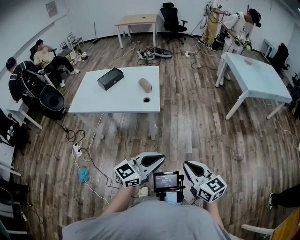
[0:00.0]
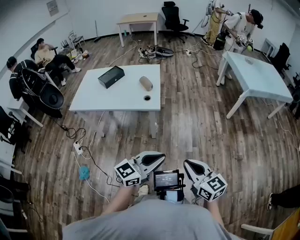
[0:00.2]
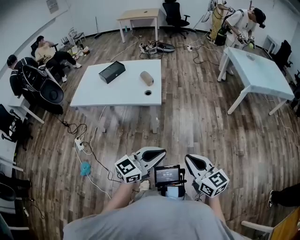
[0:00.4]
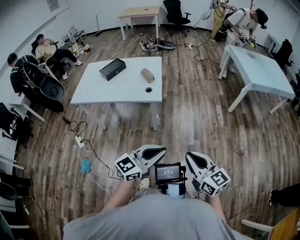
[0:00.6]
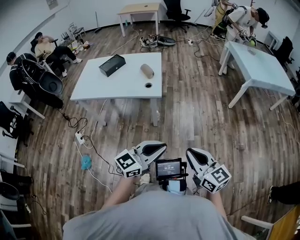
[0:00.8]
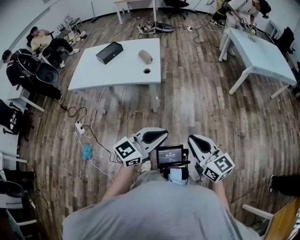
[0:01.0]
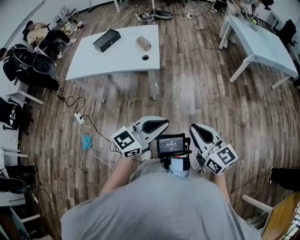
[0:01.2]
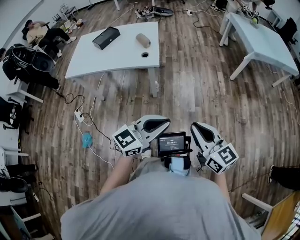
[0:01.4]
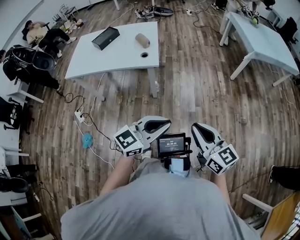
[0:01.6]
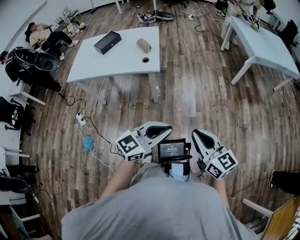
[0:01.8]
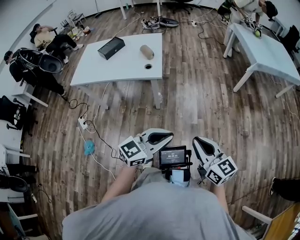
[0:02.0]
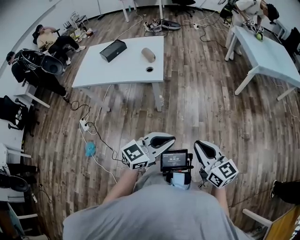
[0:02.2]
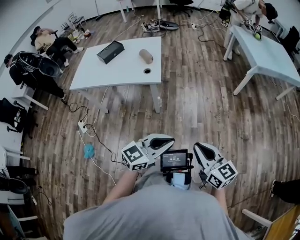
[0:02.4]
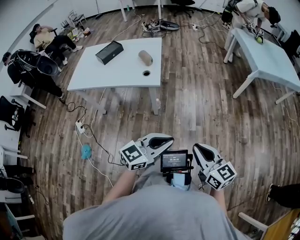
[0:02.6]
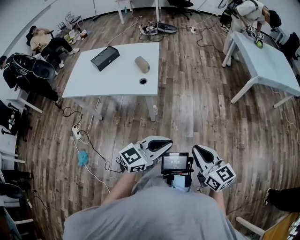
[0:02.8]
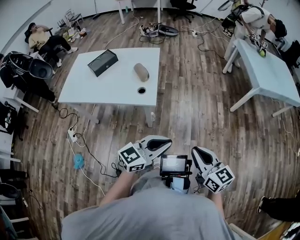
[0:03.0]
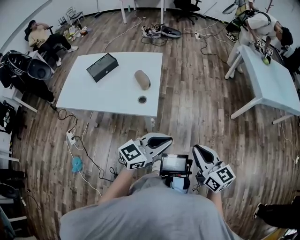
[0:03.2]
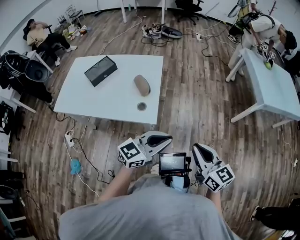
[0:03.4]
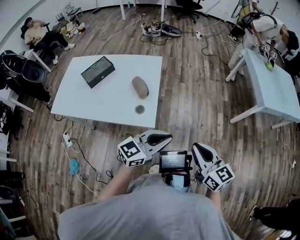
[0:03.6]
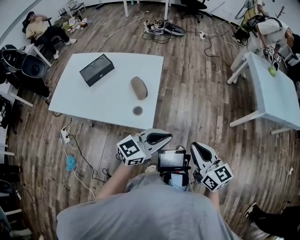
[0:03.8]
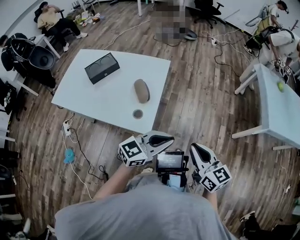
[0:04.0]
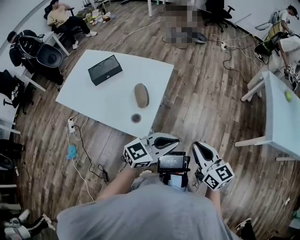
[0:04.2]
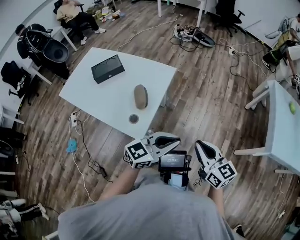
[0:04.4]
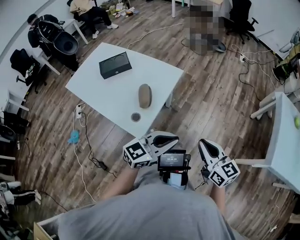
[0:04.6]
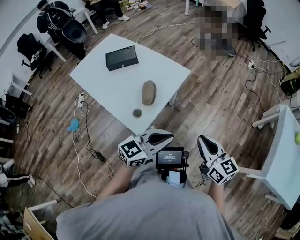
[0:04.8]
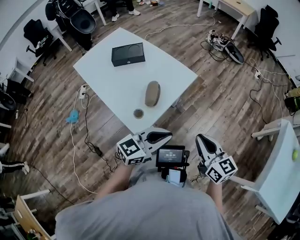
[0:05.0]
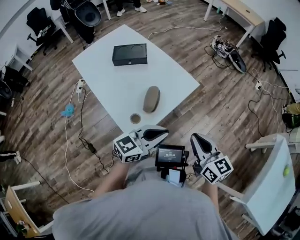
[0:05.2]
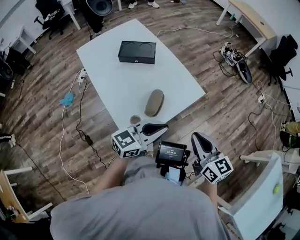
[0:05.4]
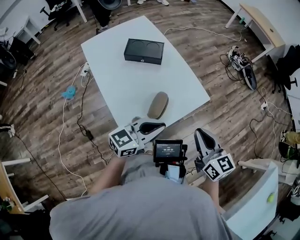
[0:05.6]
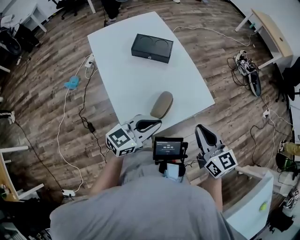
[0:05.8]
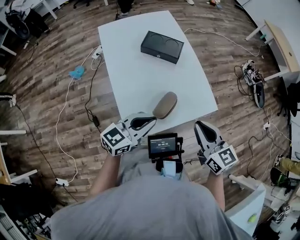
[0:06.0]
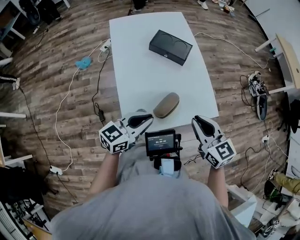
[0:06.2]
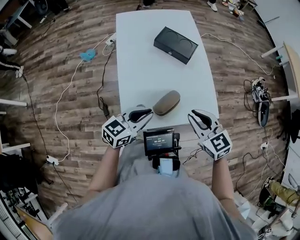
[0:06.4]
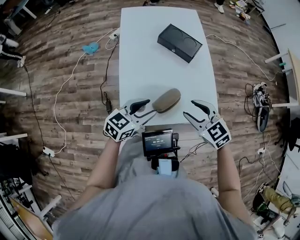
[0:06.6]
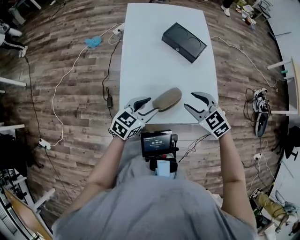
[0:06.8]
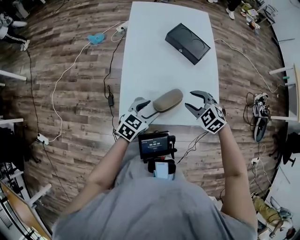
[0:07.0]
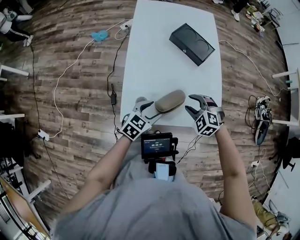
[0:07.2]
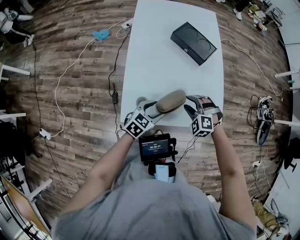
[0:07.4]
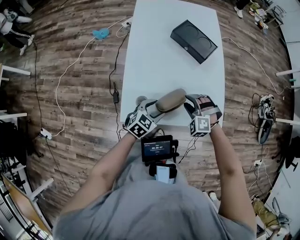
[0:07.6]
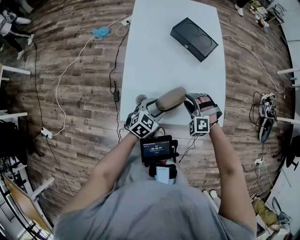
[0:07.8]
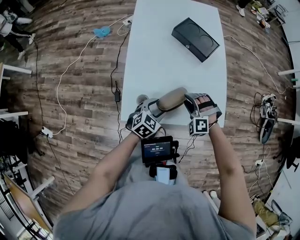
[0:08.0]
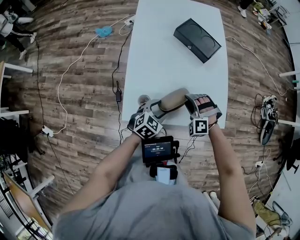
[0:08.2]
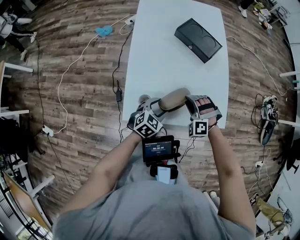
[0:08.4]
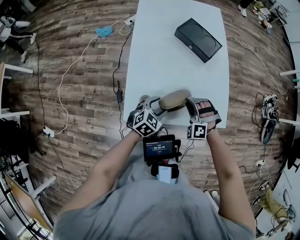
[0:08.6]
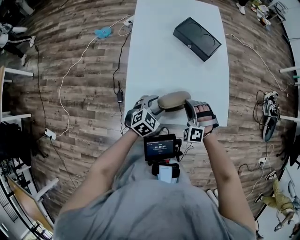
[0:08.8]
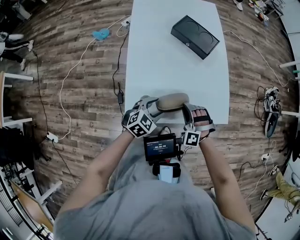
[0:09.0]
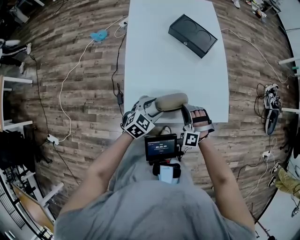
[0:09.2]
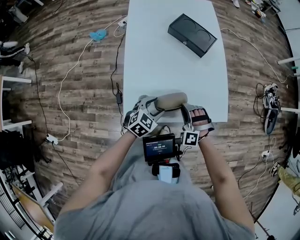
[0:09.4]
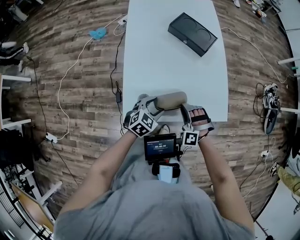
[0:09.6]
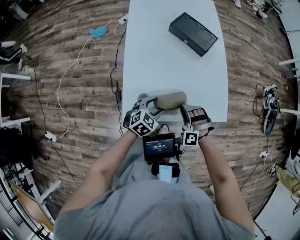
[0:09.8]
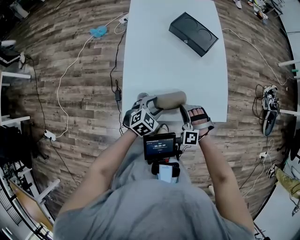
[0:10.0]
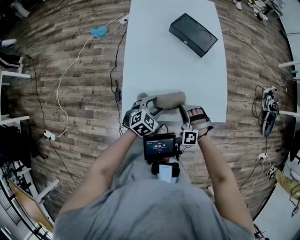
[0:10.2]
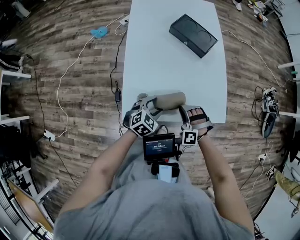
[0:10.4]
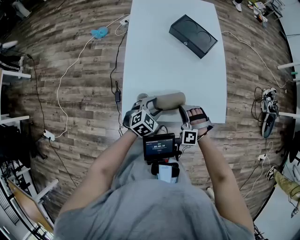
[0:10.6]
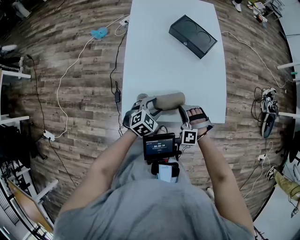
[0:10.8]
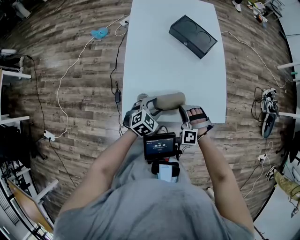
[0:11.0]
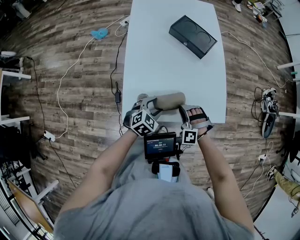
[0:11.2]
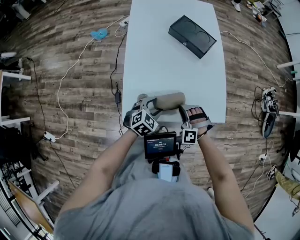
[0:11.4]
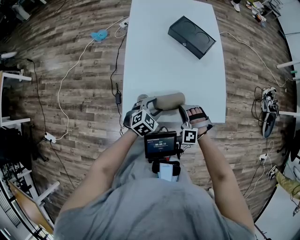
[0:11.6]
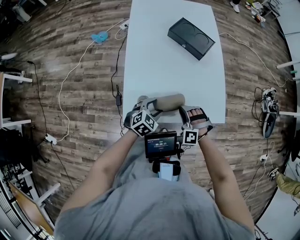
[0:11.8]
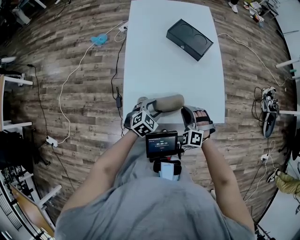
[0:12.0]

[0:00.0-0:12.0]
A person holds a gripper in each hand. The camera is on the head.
0:00.0 to 0:01.6: The left gripper moves roughly 5 cm.
0:01.6 to 0:03.0: Both grippers move forward, some 20 cm.
0:03.0 to 0:04.4: Both grippers move forward, some 40 cm.
0:04.4 to 0:06.0: The left gripper changes place by approximately 30 cm, and swivels about 60 degrees. The right gripper changes place by some 35 cm, and swivels about 50 degrees.
0:06.0 to 0:07.6: The grippers both shift downward by some 25 cm. The right gripper twists approximately 90 degrees counterclockwise, seen from behind, and opens; the left gripper tips its fingers downward by roughly 30 degrees, and opens up.
0:07.6 to 0:09.0: The right gripper moves about 5 cm, and closes up.
0:09.0 to 0:12.0: The grippers stay close to where they were, moving slightly.

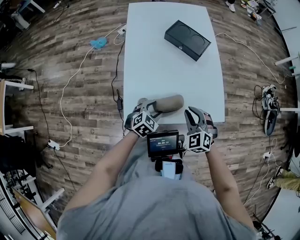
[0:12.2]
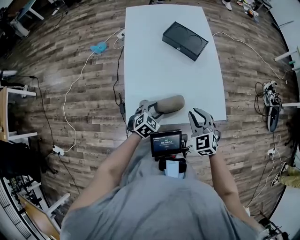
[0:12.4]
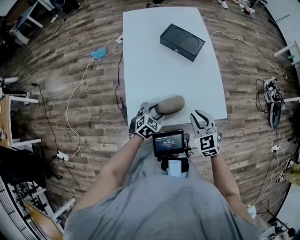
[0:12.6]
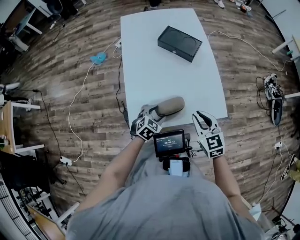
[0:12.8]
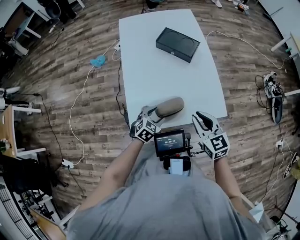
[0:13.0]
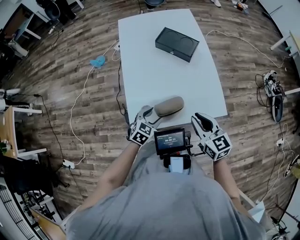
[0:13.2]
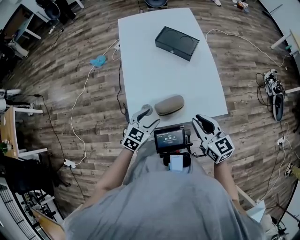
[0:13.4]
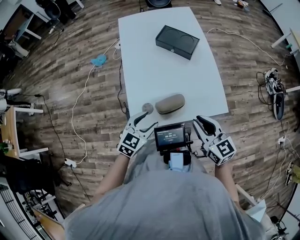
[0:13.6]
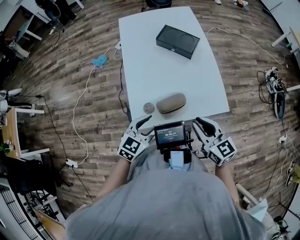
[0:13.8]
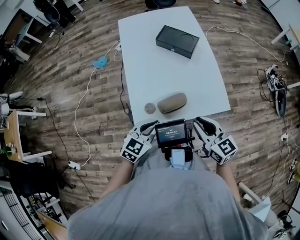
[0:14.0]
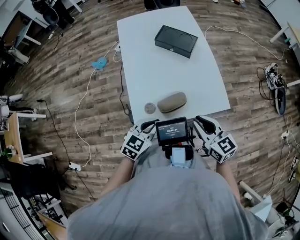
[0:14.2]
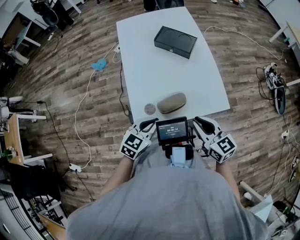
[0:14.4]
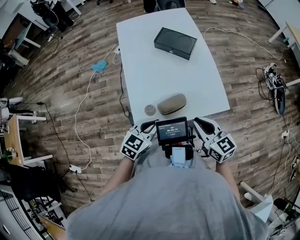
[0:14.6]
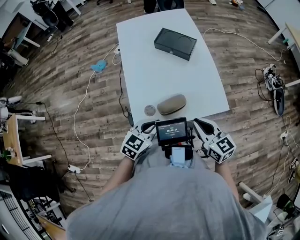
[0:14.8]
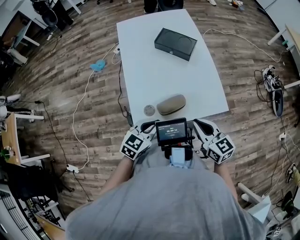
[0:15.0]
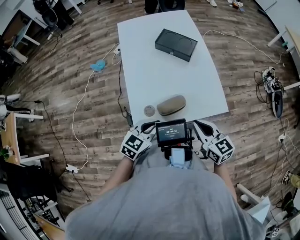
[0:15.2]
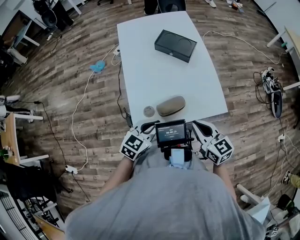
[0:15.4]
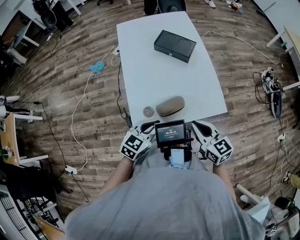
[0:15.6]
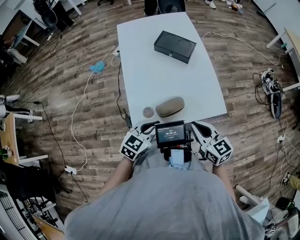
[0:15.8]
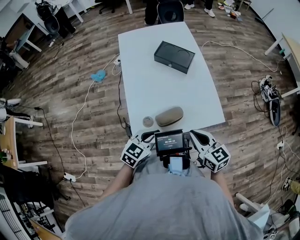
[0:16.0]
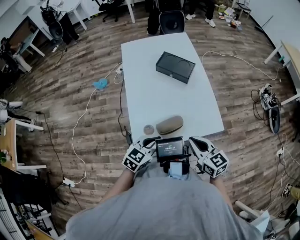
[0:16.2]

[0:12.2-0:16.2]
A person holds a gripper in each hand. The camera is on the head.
0:12.2 to 0:13.6: Both grippers travel together upward and backward, roughly 15 cm. The right gripper rotates around the line of its fingers by roughly 50 degrees, clockwise from behind.
0:13.6 to 0:14.8: The left gripper closes up.
0:14.8 to 0:16.2: There are only small adjustments of the grippers.

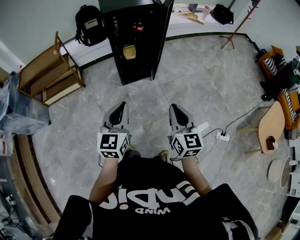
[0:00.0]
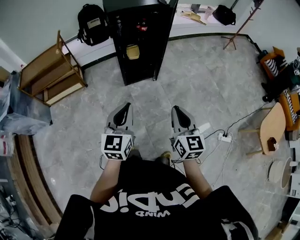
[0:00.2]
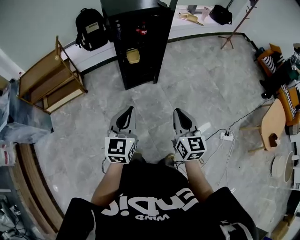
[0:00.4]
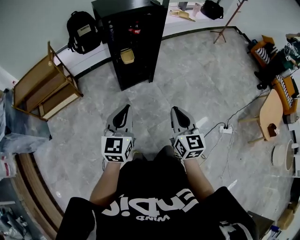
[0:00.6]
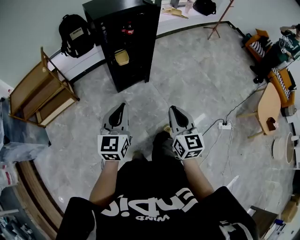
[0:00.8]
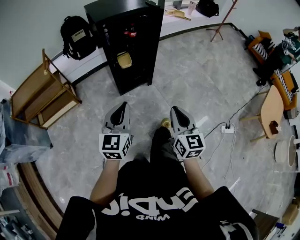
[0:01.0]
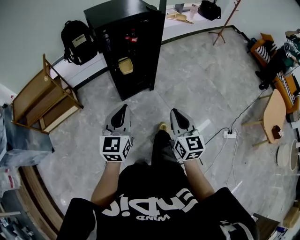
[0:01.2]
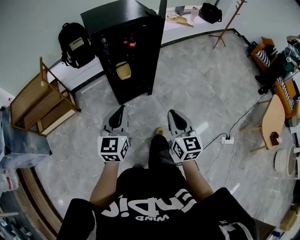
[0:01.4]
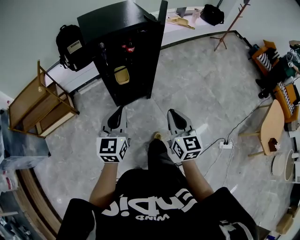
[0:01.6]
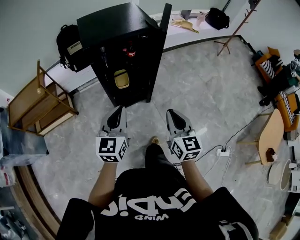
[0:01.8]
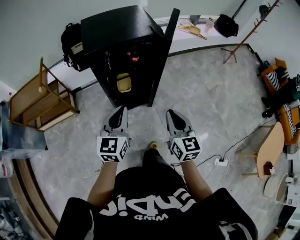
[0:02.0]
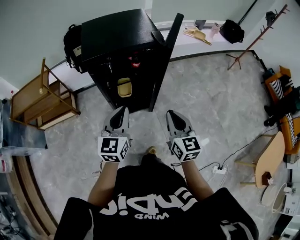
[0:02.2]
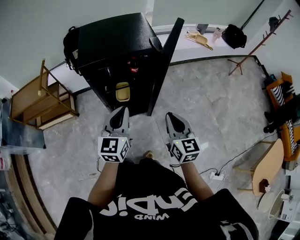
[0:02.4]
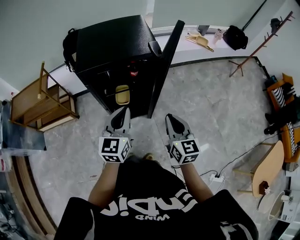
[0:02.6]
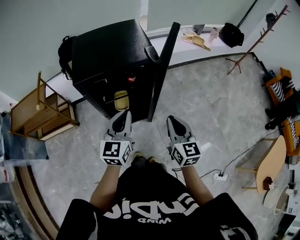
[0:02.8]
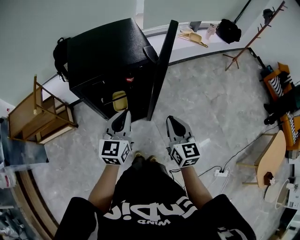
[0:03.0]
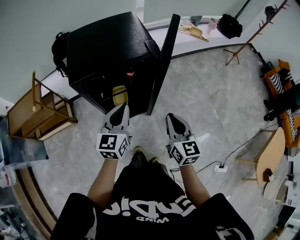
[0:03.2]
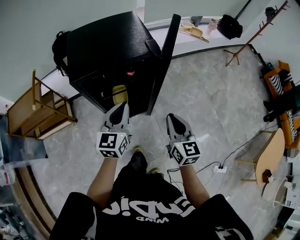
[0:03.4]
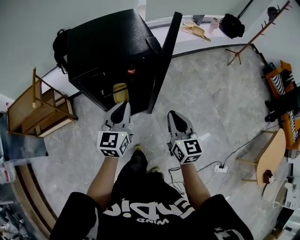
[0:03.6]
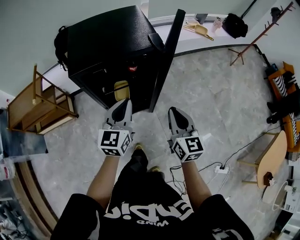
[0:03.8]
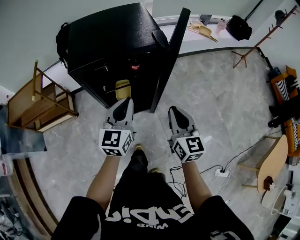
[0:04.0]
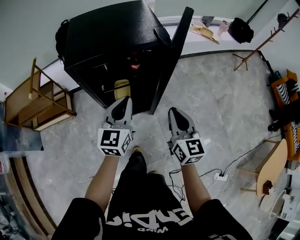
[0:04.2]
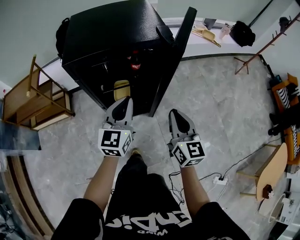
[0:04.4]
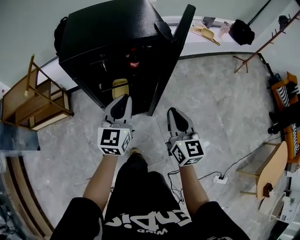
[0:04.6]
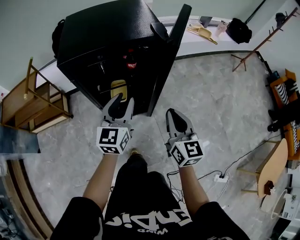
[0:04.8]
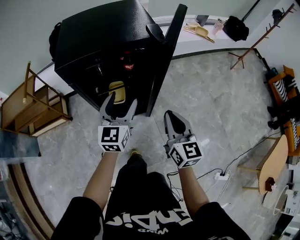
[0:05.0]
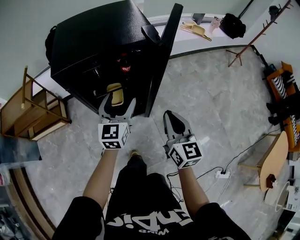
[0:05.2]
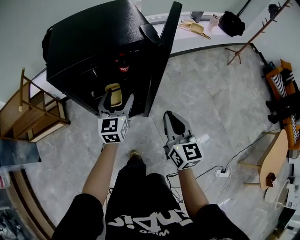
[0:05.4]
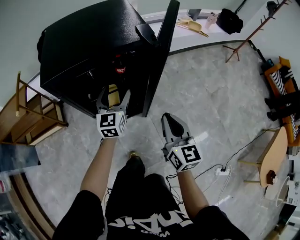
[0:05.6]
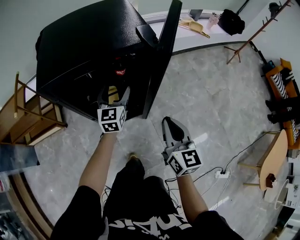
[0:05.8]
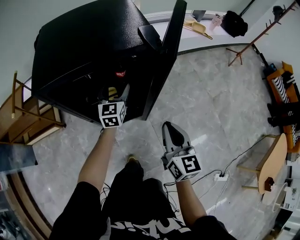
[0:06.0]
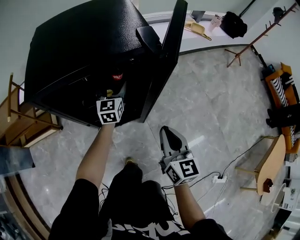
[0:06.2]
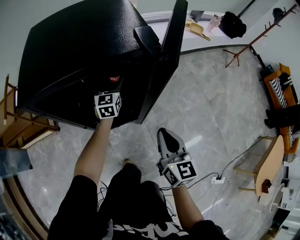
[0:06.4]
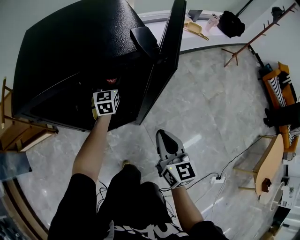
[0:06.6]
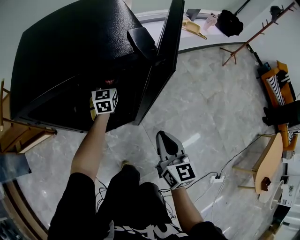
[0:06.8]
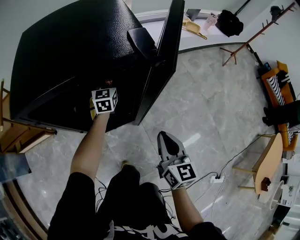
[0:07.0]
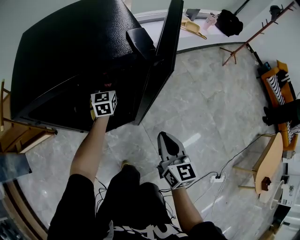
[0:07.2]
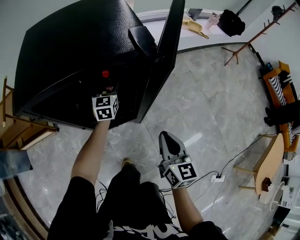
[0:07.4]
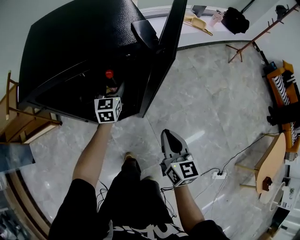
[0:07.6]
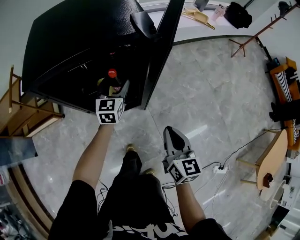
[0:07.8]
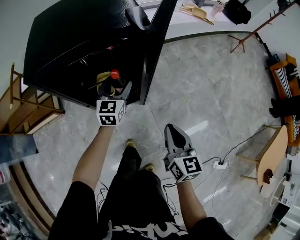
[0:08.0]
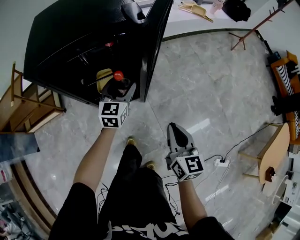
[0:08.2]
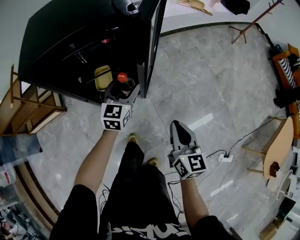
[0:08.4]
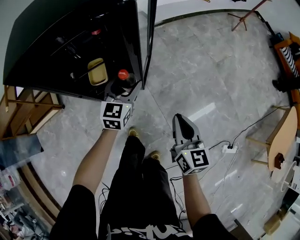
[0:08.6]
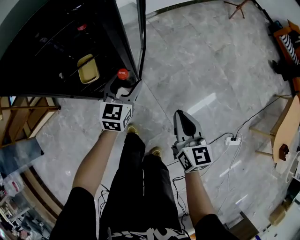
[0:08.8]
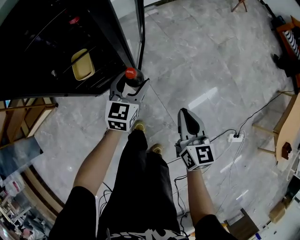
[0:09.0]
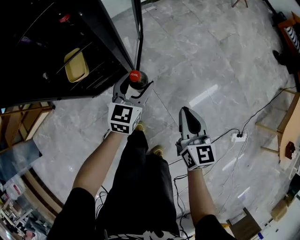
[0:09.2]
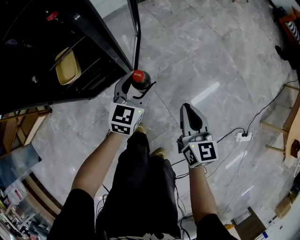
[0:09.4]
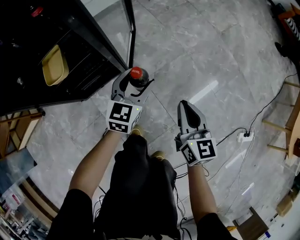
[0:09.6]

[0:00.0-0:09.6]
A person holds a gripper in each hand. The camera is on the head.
0:00.0 to 0:01.6: The two grippers go approximately 20 cm forward.
0:01.6 to 0:03.2: The grippers both shift forward by about 25 cm.
0:03.2 to 0:04.8: The two grippers go about 5 cm downward. The left gripper opens.
0:04.8 to 0:06.4: The right gripper shifts approximately 10 cm downward and forward; the left gripper is displaced forward and downward by roughly 30 cm, and opens its fingers.
0:06.4 to 0:08.0: The right gripper shifts some 10 cm backward. The left gripper travels backward by approximately 15 cm.
0:08.0 to 0:09.6: The right gripper moves downward, roughly 30 cm, while the left gripper goes approximately 35 cm downward and to the right, and swivels roughly 30 degrees.
